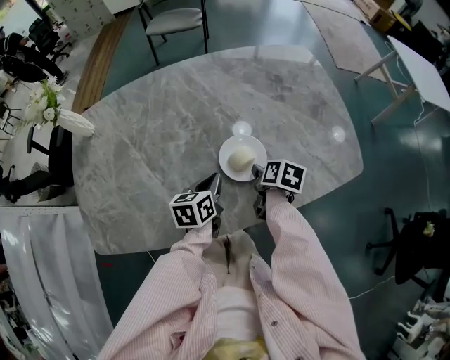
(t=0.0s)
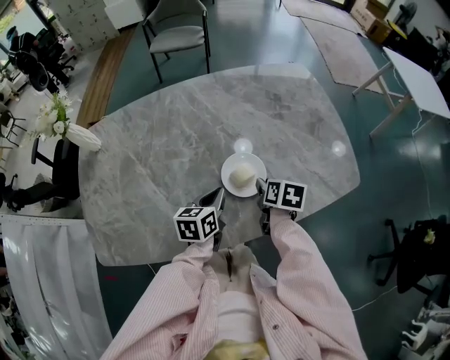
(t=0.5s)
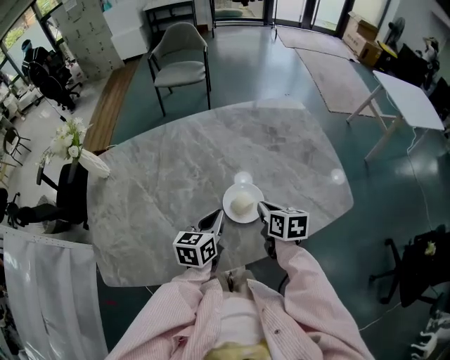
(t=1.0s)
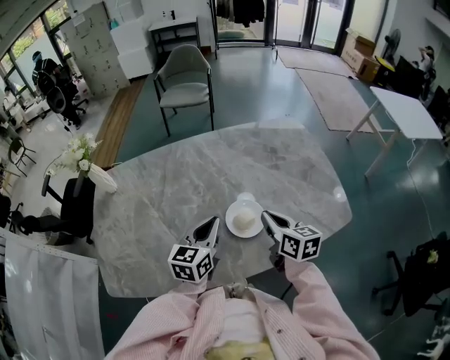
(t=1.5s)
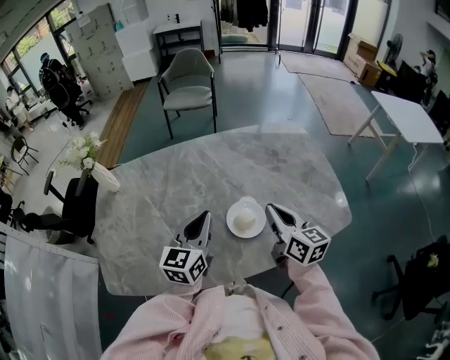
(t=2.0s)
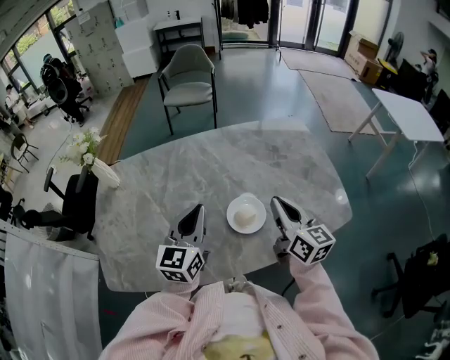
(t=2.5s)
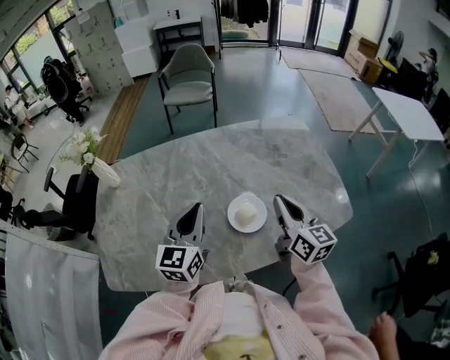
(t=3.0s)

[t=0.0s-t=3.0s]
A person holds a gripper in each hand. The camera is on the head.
t=0.0s to t=1.5s: The left gripper travels upward by roughly 15 cm, and changes its angle by some 30 degrees.
t=1.5s to t=3.0s: The left gripper travels upward by some 5 cm.

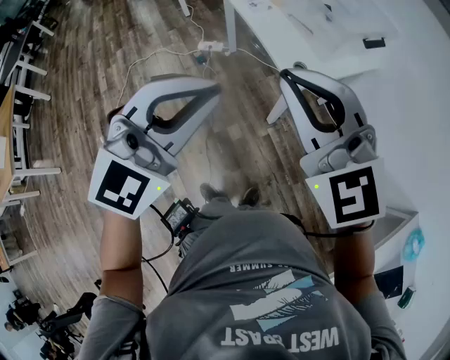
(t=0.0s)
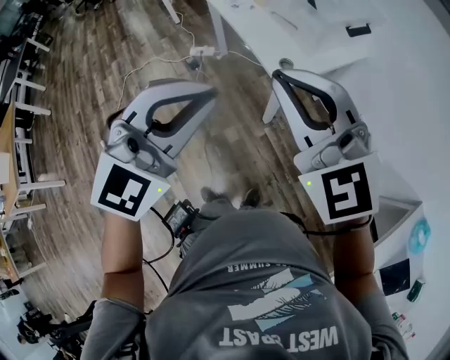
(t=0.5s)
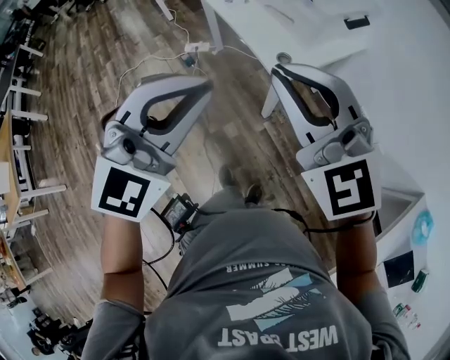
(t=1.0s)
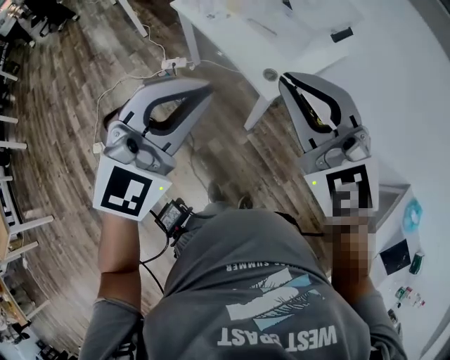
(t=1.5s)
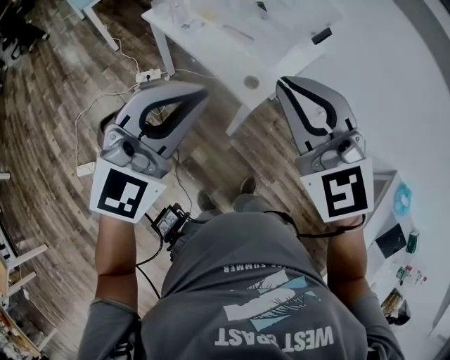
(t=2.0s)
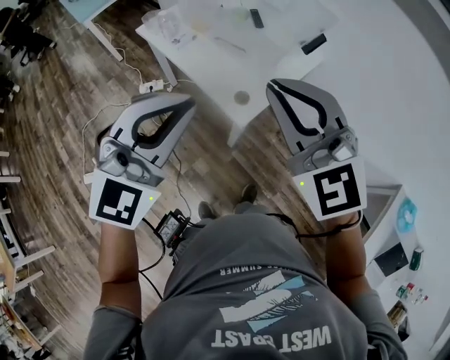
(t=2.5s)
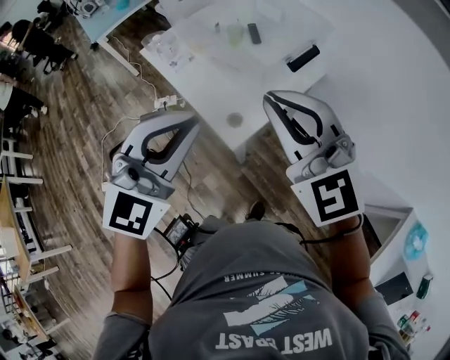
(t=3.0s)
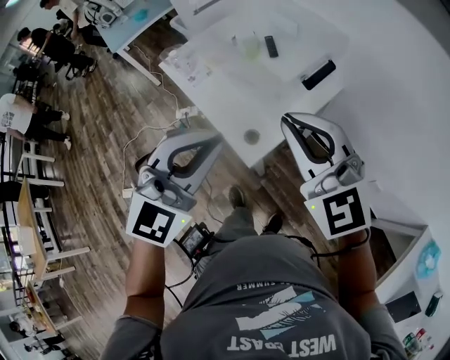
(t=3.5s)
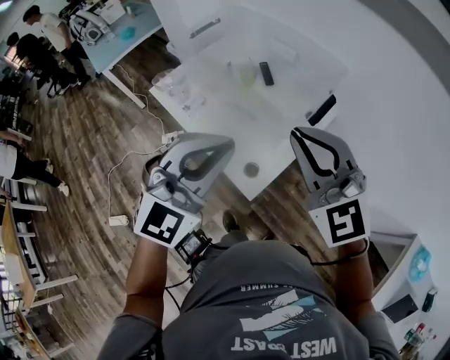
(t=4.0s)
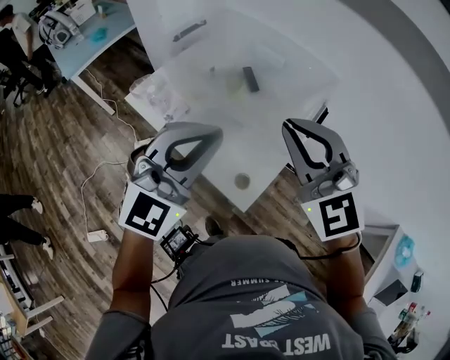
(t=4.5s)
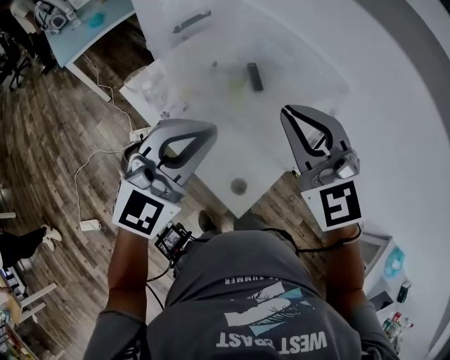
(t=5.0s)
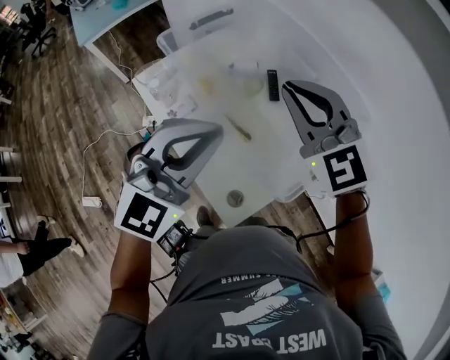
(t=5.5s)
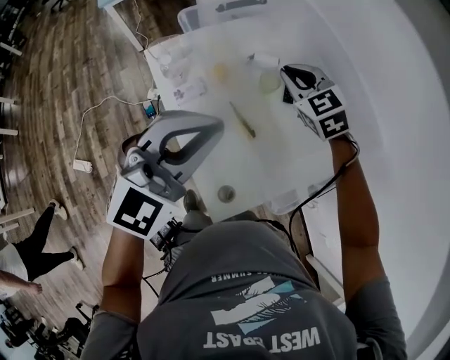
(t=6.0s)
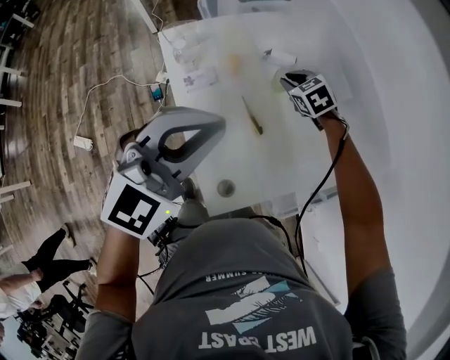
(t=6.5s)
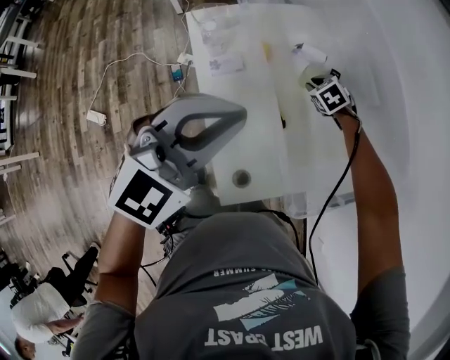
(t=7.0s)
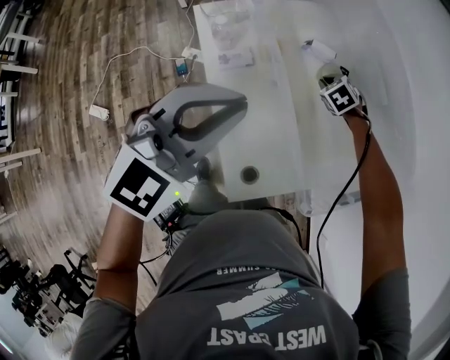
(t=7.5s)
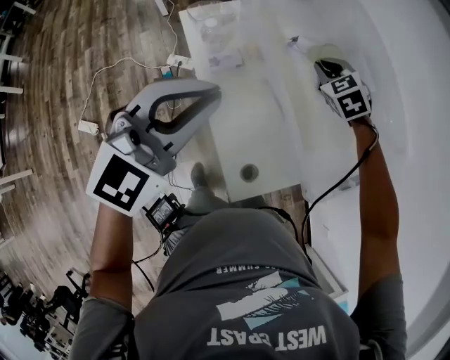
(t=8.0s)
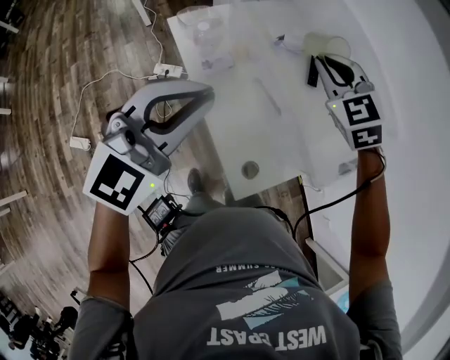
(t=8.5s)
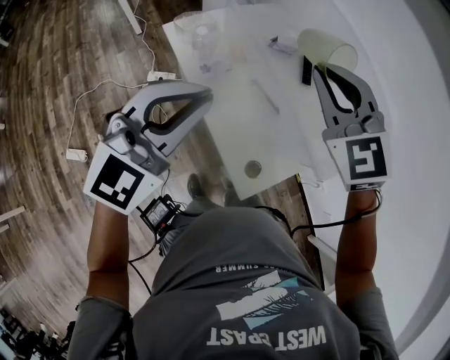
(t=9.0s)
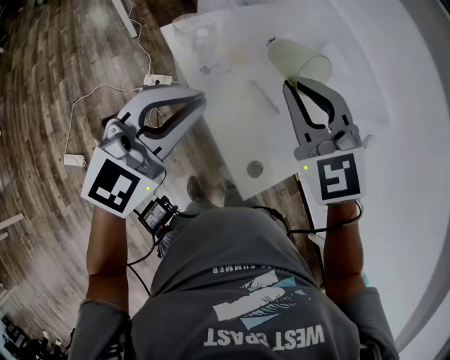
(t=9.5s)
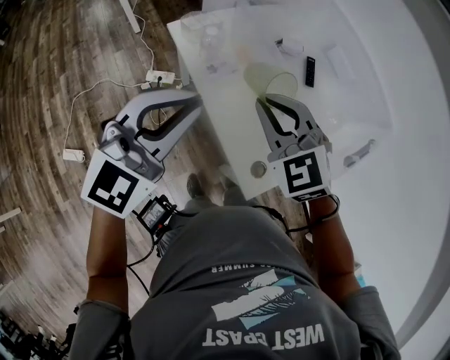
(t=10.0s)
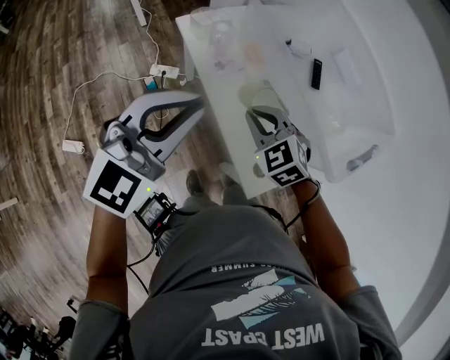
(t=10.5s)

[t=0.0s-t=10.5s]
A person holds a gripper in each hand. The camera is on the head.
t=0.0s to t=2.0s: Both grippers move forward, roughly 15 cm. The right gripper rotates some 20 degrees.
t=2.0s to t=4.0s: Both grippers travel together forward and to the right, some 25 cm.
t=4.0s to t=6.5s: The right gripper shifts by approximately 50 cm, and tilts its fingers about 50 degrees downward. Meanwhile the left gripper changes place by approximately 25 cm, and changes its angle by about 30 degrees.
t=6.5s to t=8.5s: The left gripper heads to the left, covering roughly 10 cm, while the right gripper is displaced upward and backward by some 25 cm, and rotates roughly 30 degrees.
t=8.5s to t=10.5s: The left gripper goes approximately 10 cm to the left. The right gripper is displaced backward, downward and to the left by approximately 25 cm.

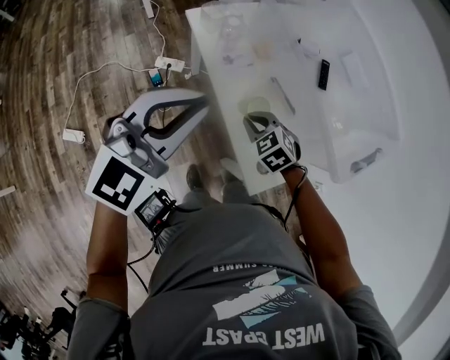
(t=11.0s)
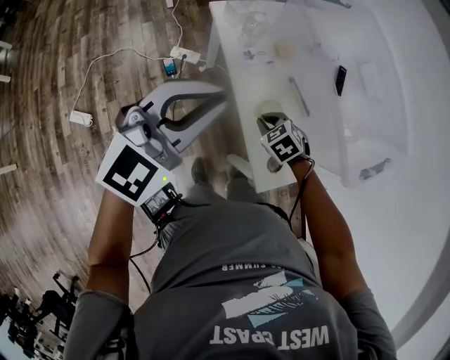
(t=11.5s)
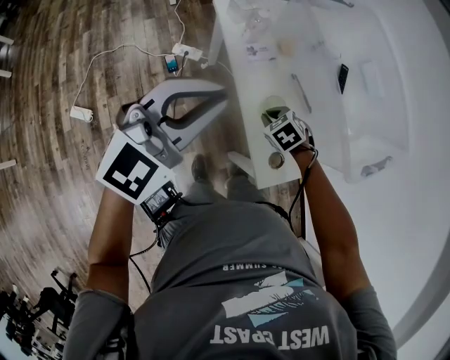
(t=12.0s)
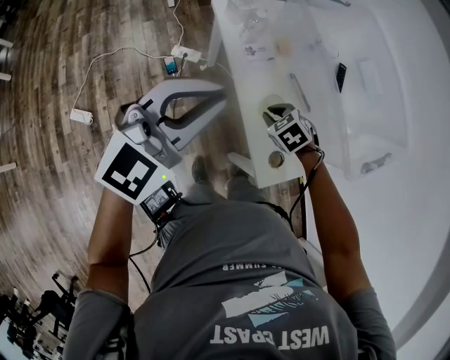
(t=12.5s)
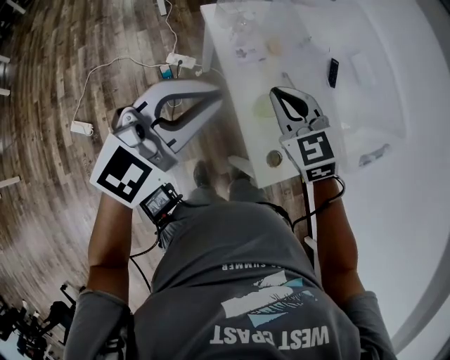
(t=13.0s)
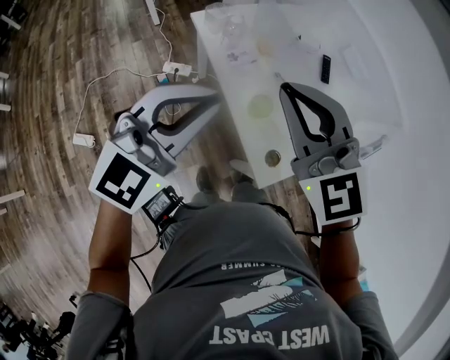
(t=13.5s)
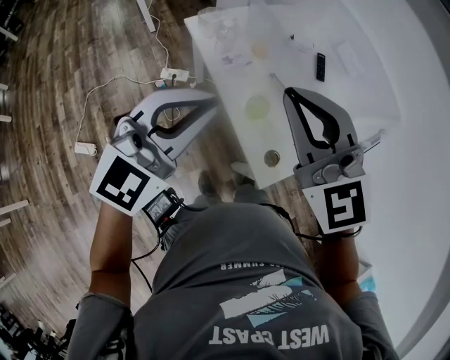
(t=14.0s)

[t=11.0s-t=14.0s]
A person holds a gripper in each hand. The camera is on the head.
t=12.5s to t=14.0s: The right gripper travels upward by approximately 35 cm, and tips its fingers upward by approximately 60 degrees; the left gripper changes place by roughly 5 cm.

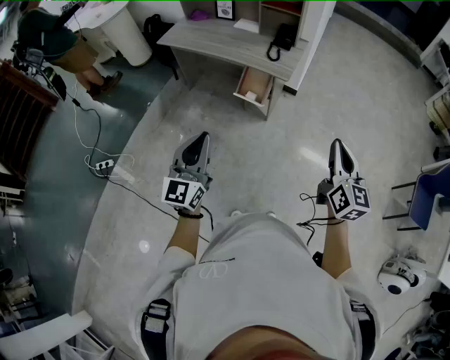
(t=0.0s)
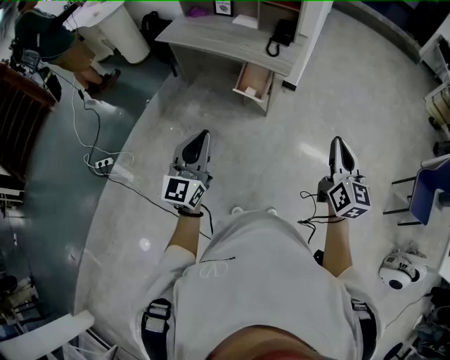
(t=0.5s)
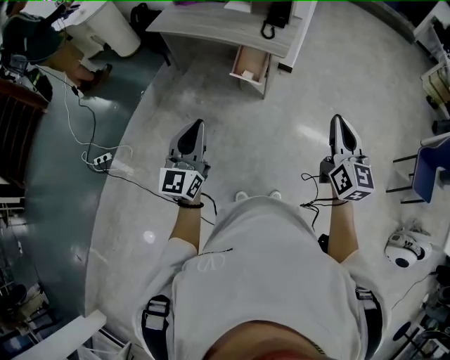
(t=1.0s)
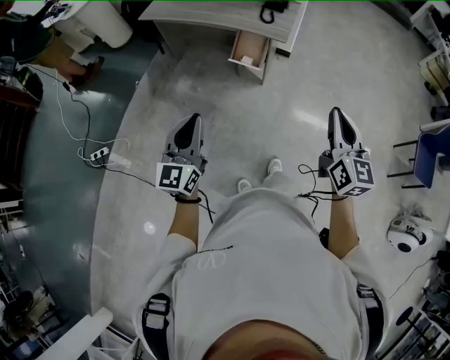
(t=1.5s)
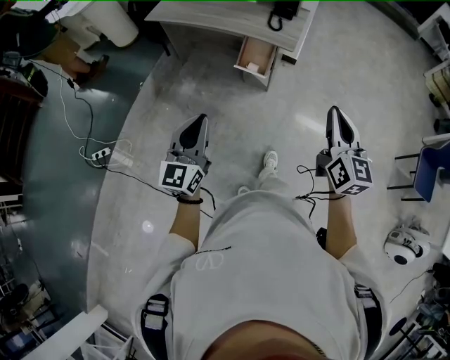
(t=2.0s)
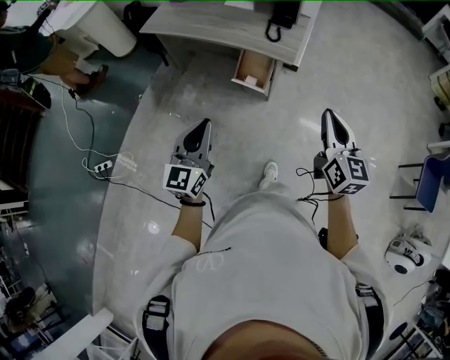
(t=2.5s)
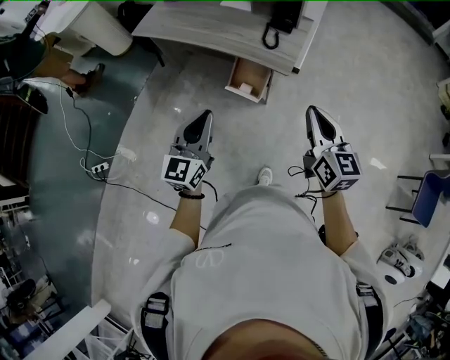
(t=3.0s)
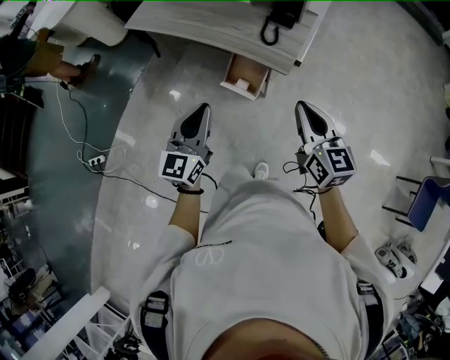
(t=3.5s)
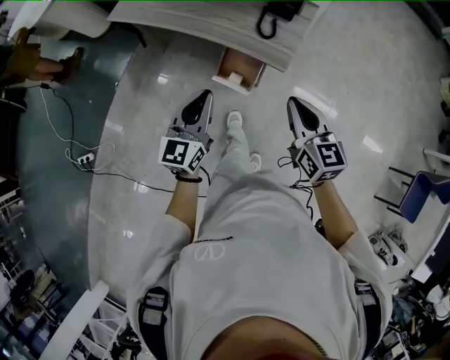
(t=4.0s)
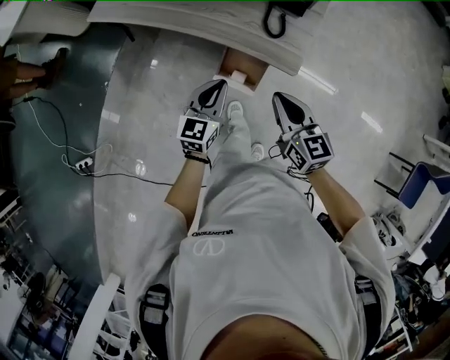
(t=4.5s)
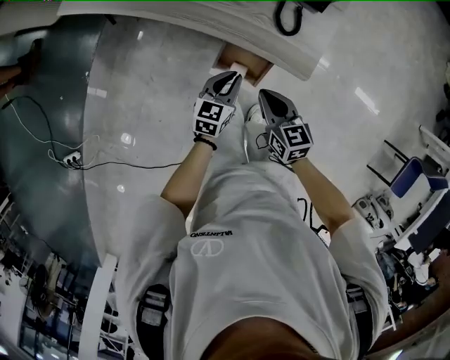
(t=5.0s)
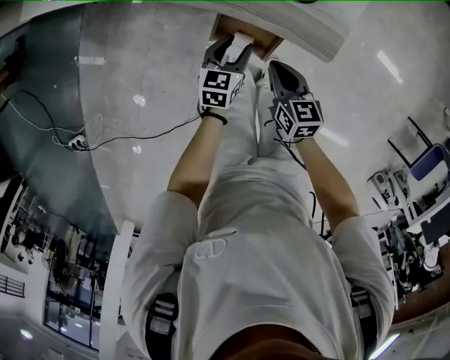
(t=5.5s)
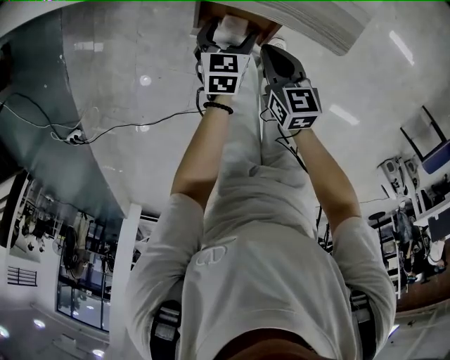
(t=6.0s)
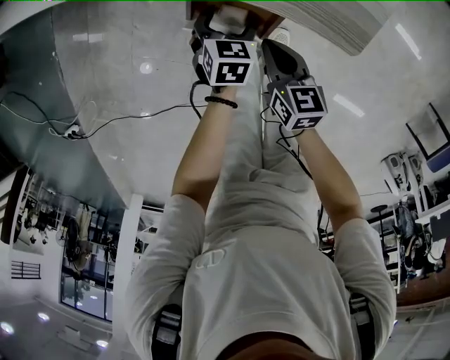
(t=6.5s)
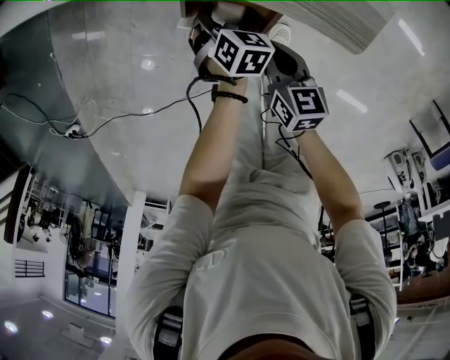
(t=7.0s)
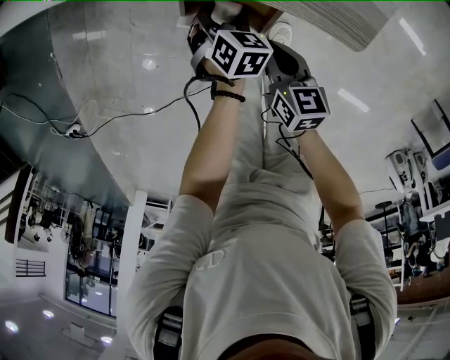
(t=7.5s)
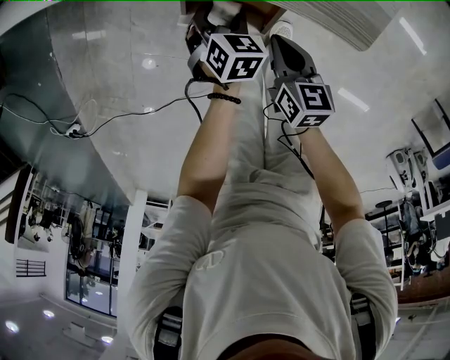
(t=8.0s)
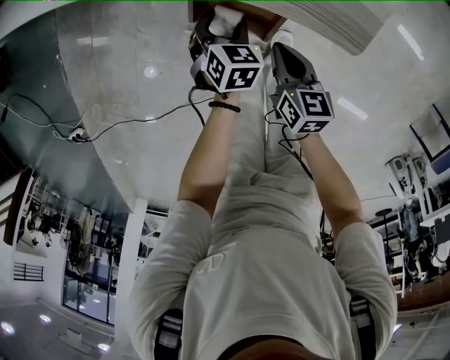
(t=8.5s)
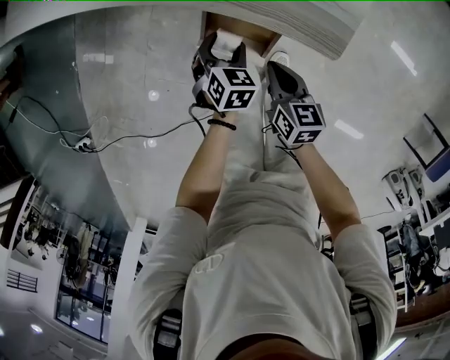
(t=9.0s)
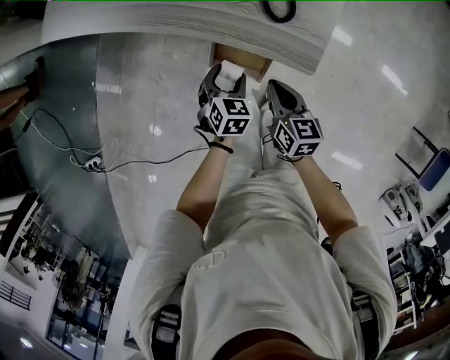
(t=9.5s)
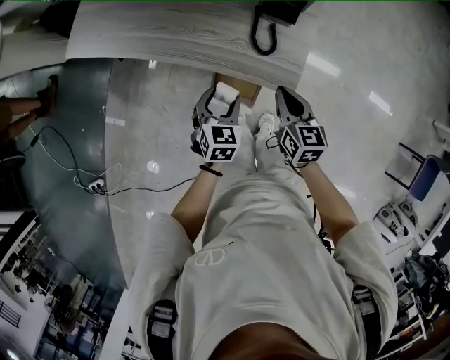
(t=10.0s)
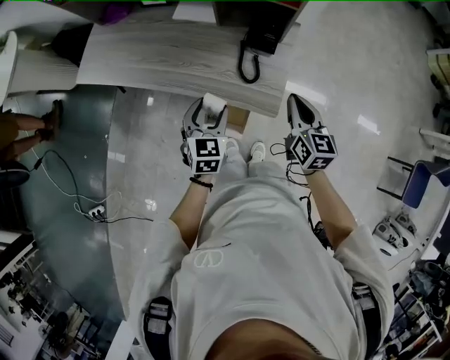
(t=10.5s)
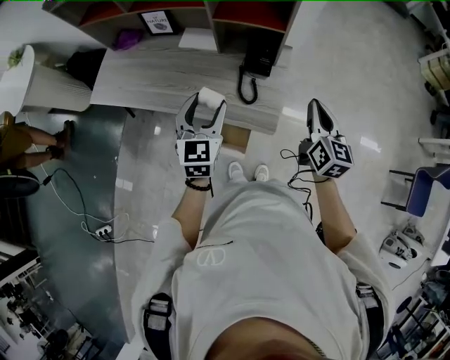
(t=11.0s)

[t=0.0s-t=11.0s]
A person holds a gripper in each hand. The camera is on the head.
t=0.0s to t=2.0s: The grippers both shift to the left by roughly 10 cm.
t=2.0s to t=3.5s: Both grippers travel together forward, approximately 30 cm. The right gripper turns by some 20 degrees.
t=3.5s to t=5.5s: The two grippers go about 50 cm downward and forward. The left gripper angles its fingers downward, by approximately 40 degrees, and opens, while the right gripper changes its angle by about 30 degrees.
t=5.5s to t=7.5s: The grippers both shift downward by approximately 15 cm. The left gripper turns by approximately 40 degrees.
t=7.5s to t=9.0s: Both grippers move upward, about 10 cm.
t=9.0s to t=11.0s: The right gripper goes approximately 50 cm upward and to the right, and rotates some 40 degrees. The left gripper travels upward by approximately 50 cm, and points its fingers approximately 50 degrees further upward.
